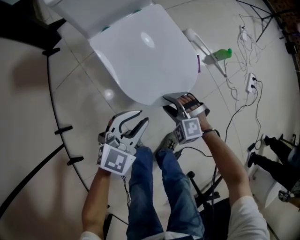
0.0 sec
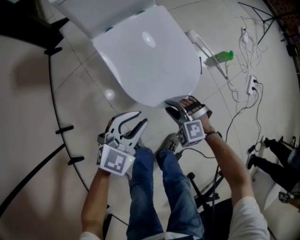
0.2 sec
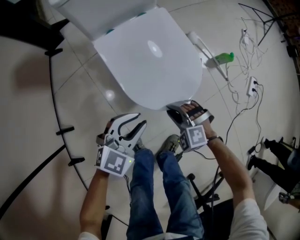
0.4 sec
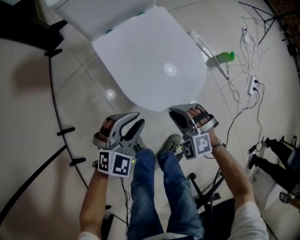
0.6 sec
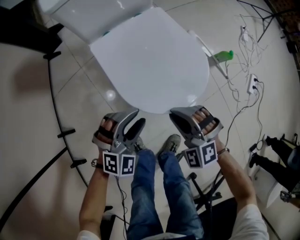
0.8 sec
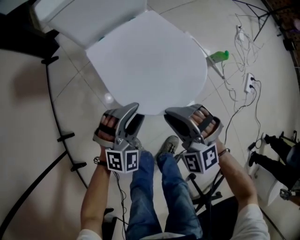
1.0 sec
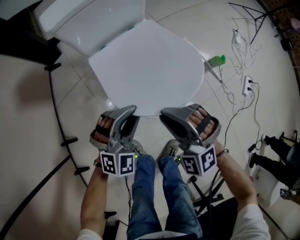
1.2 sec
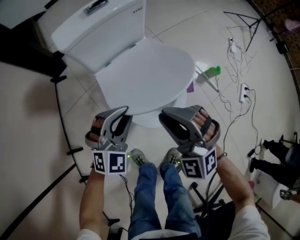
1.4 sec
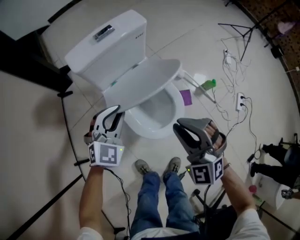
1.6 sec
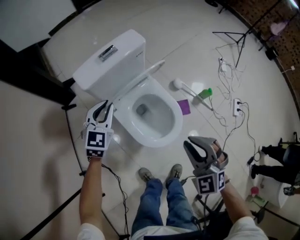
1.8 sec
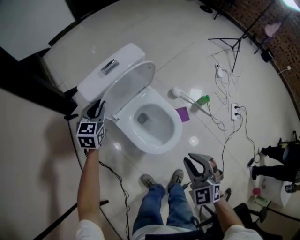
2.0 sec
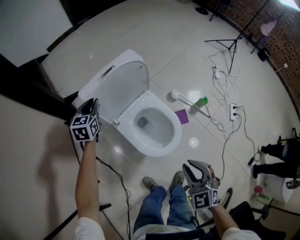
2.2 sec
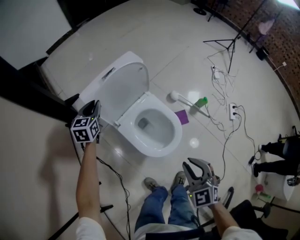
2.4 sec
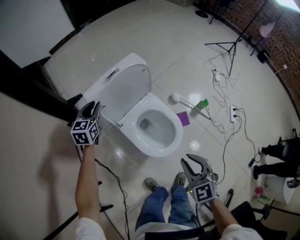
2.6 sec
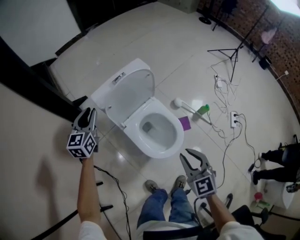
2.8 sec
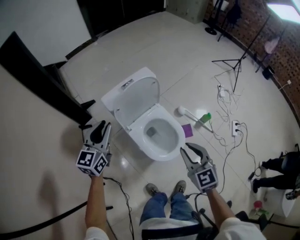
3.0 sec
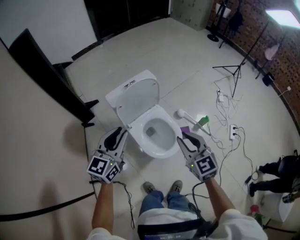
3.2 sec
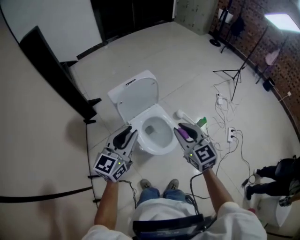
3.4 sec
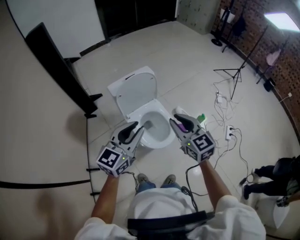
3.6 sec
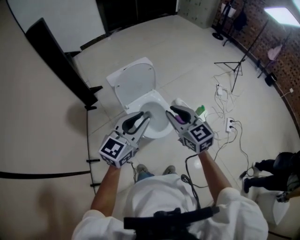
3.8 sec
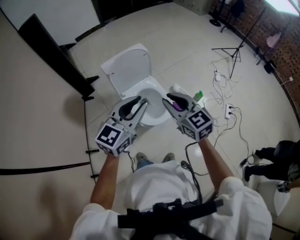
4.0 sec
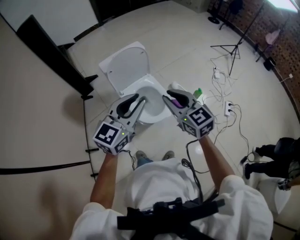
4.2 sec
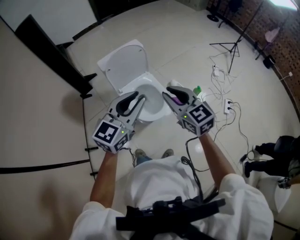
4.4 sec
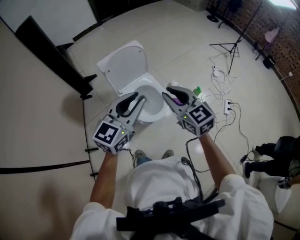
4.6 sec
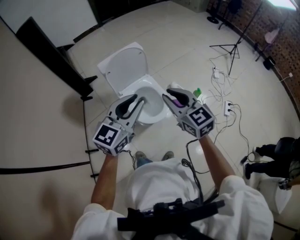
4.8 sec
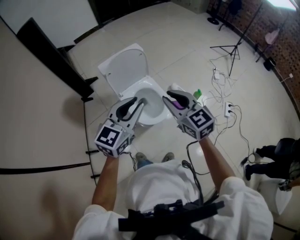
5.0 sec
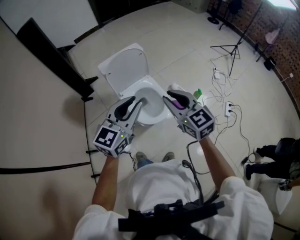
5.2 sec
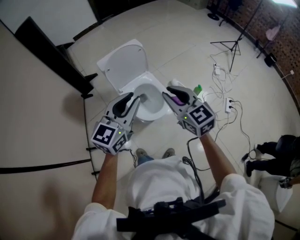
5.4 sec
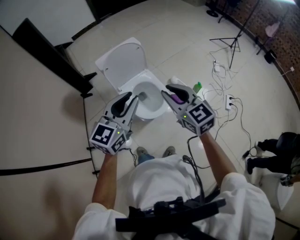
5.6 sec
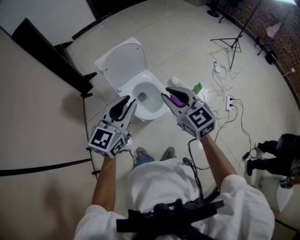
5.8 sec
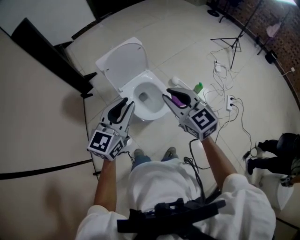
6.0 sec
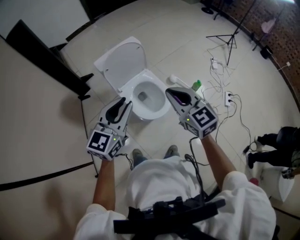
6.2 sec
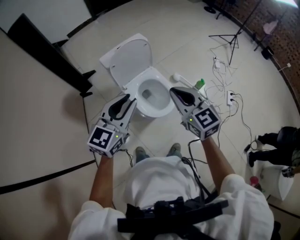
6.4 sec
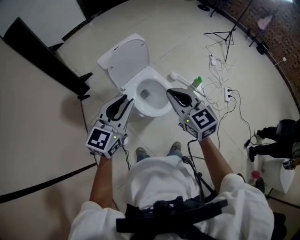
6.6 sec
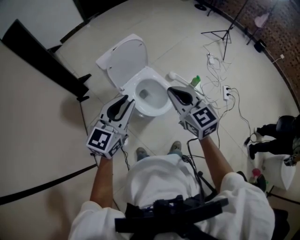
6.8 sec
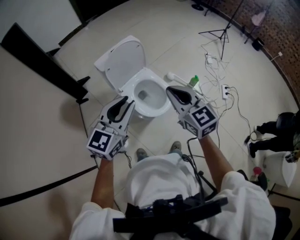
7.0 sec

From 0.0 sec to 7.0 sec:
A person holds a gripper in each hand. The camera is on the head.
From 0.0 sec to 1.4 sec: The left gripper goes approximately 15 cm forward and upward, changes its angle by roughly 30 degrees, and opens and closes again. Meanwhile the right gripper travels upward by roughly 30 cm, tips its fingers upward by about 30 degrees, and closes its fingers.
From 1.4 sec to 2.8 sec: The right gripper shifts some 10 cm upward, and rotates around the line of its fingers by roughly 50 degrees, clockwise from behind. The left gripper is displaced to the left, upward and forward by roughly 35 cm, and rotates around the line of its fingers by about 50 degrees, counterclockwise from behind.
From 2.8 sec to 4.2 sec: The left gripper travels backward, to the right and upward by about 50 cm, and turns by about 20 degrees. Meanwhile the right gripper shifts approximately 15 cm upward, and turns by roughly 20 degrees.
From 4.2 sec to 5.6 sec: The grippers make only small movements.
From 5.6 sec to 7.0 sec: The two grippers go roughly 10 cm to the left.

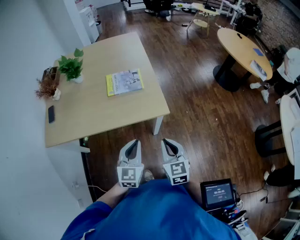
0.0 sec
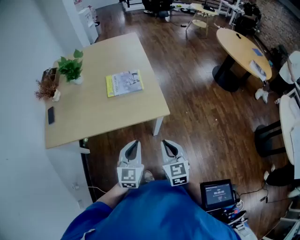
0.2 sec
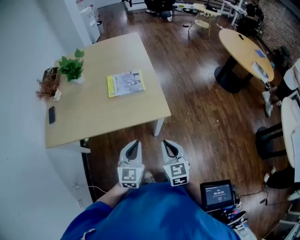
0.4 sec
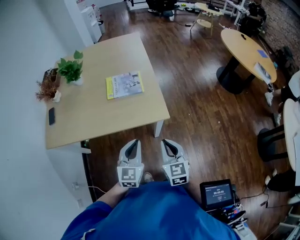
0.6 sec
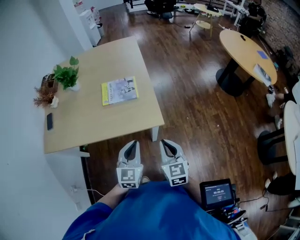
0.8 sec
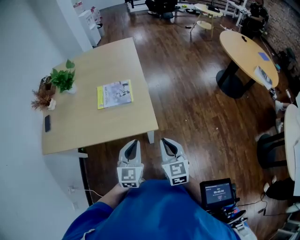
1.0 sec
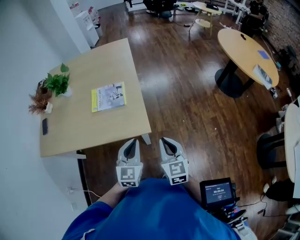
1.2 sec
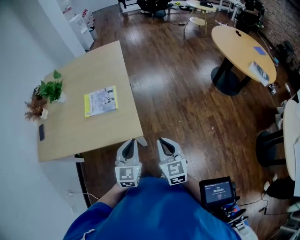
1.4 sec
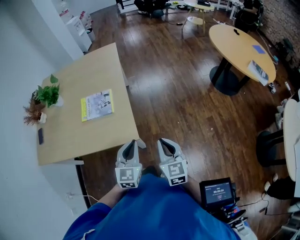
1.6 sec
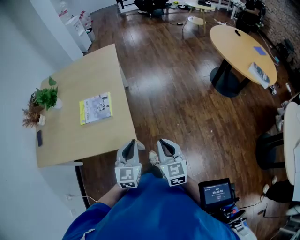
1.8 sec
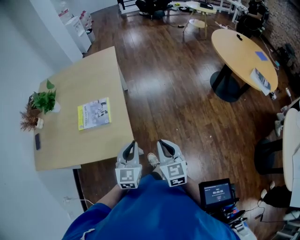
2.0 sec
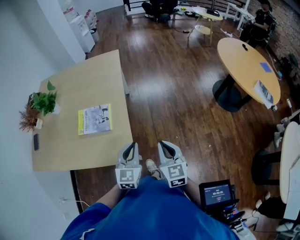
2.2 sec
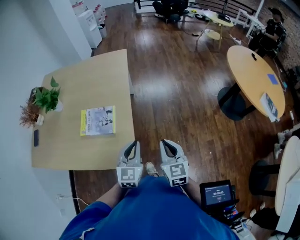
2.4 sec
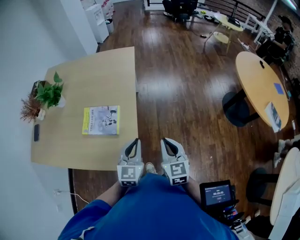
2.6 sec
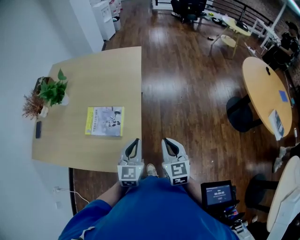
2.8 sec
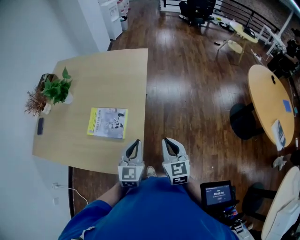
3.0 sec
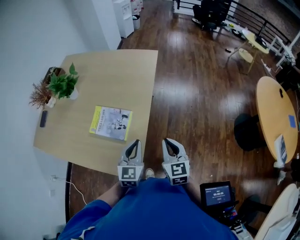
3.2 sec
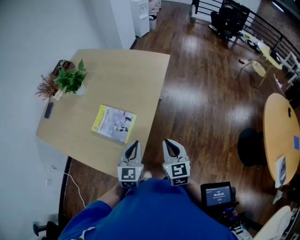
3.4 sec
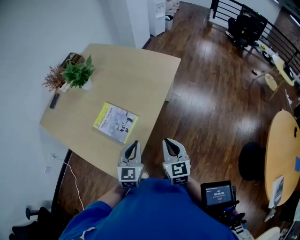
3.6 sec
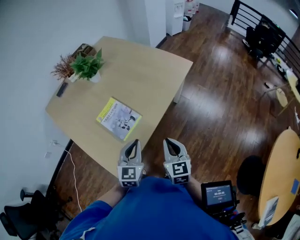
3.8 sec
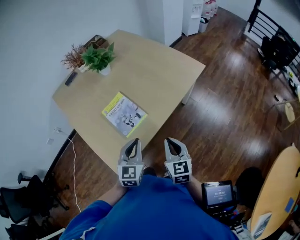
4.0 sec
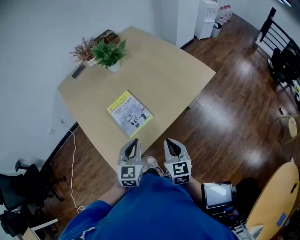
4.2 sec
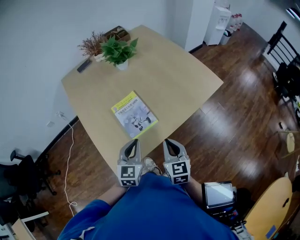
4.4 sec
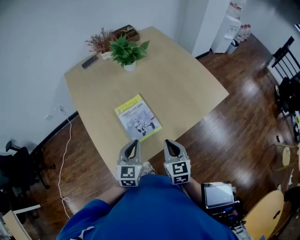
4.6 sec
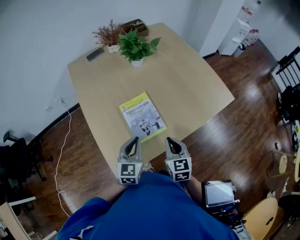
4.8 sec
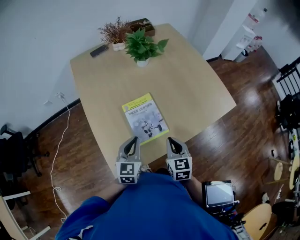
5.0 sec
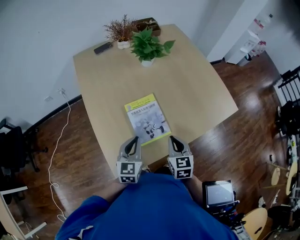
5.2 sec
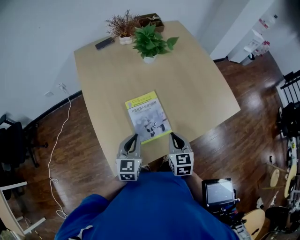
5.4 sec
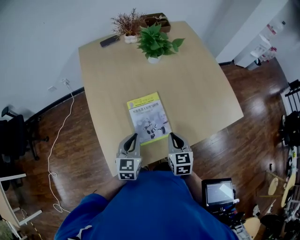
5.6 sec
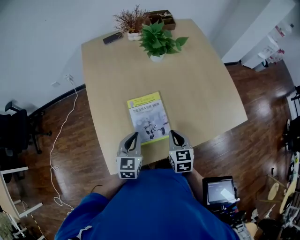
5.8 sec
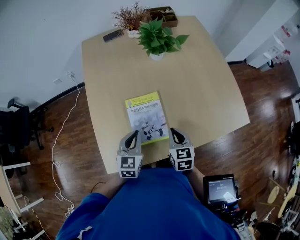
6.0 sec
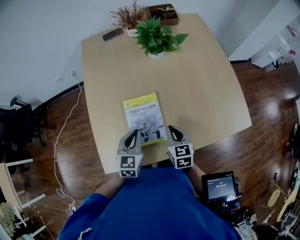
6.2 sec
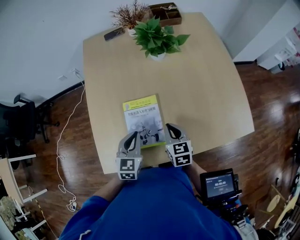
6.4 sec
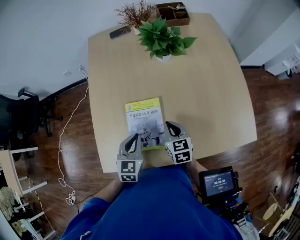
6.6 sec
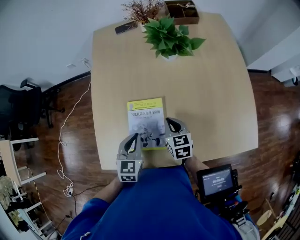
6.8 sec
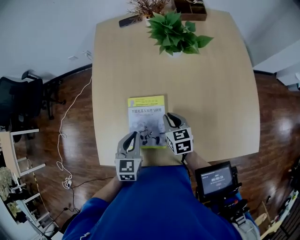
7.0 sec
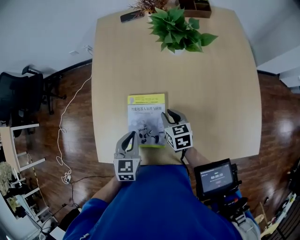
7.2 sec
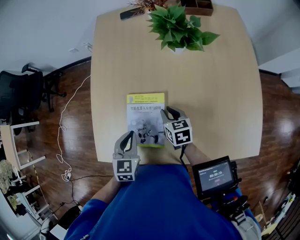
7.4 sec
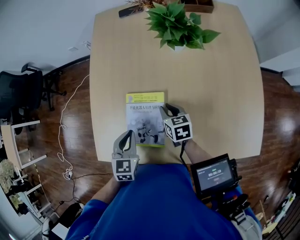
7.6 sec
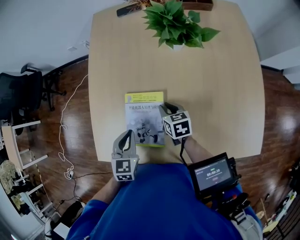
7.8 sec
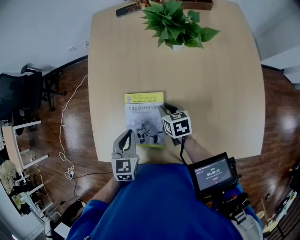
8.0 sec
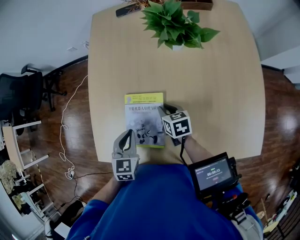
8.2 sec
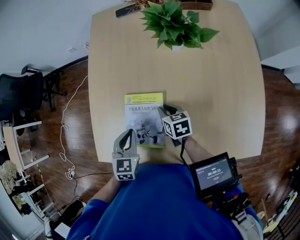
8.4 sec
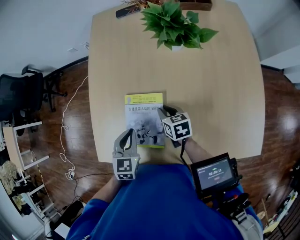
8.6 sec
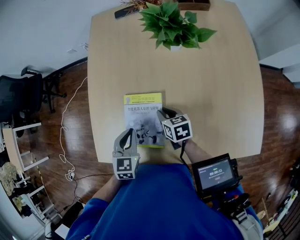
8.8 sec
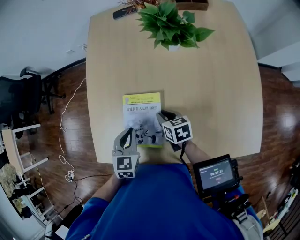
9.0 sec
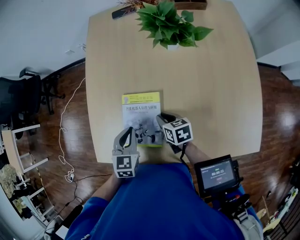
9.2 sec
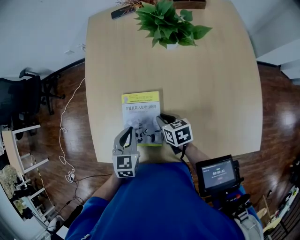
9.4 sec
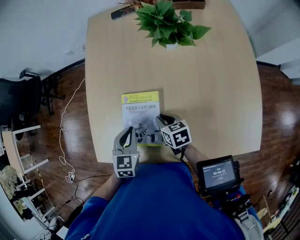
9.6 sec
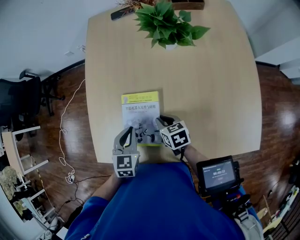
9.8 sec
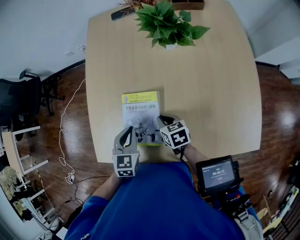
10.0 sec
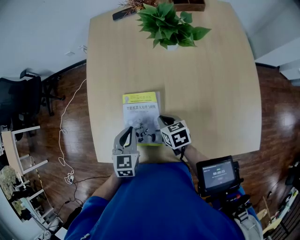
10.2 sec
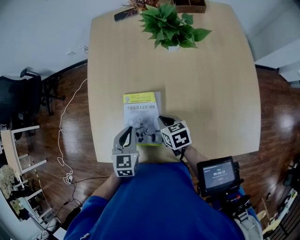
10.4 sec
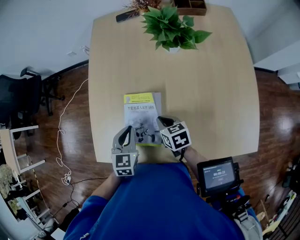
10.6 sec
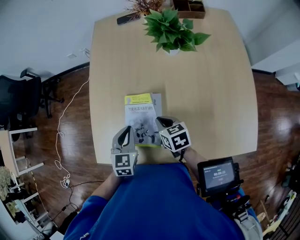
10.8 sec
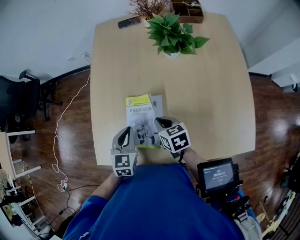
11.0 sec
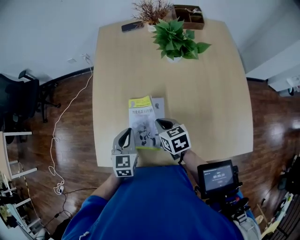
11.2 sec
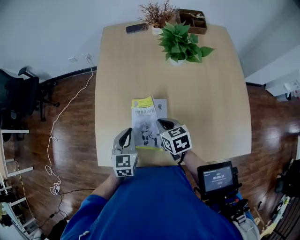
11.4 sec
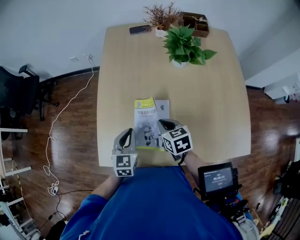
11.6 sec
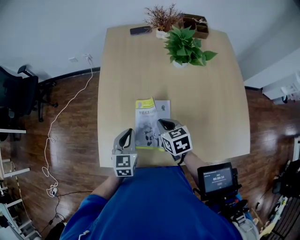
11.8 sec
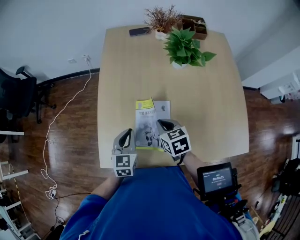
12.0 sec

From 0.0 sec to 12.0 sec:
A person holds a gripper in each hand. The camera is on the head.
From 0.0 sec to 1.6 sec: The two grippers go approximately 25 cm to the right and forward.
From 1.6 sec to 3.0 sec: Both grippers travel together forward, roughly 25 cm.
From 3.0 sec to 4.4 sec: The left gripper ends up about 10 cm from where it was, and rotates roughly 50 degrees; the right gripper changes place by about 20 cm, and rotates roughly 50 degrees.
From 4.4 sec to 6.0 sec: Both grippers move forward and downward, some 15 cm. The right gripper changes its angle by some 20 degrees; the left gripper changes its angle by approximately 20 degrees.
From 6.0 sec to 7.6 sec: The right gripper shifts by roughly 20 cm, and swivels some 30 degrees. Meanwhile the left gripper rotates about 20 degrees.
From 7.6 sec to 10.4 sec: The grippers make only small movements.
From 10.4 sec to 12.0 sec: The right gripper travels upward and to the left by approximately 10 cm, while the left gripper is displaced to the left by roughly 10 cm.

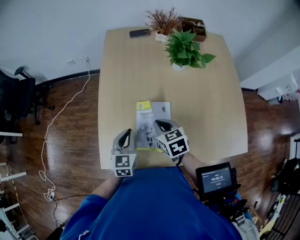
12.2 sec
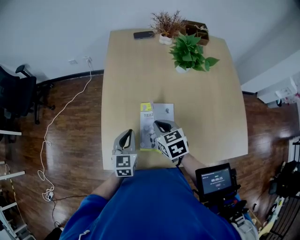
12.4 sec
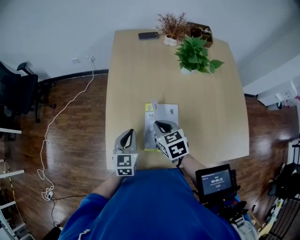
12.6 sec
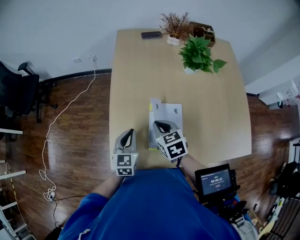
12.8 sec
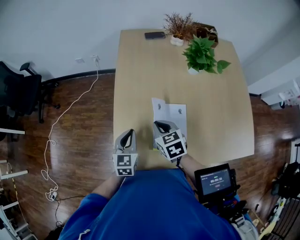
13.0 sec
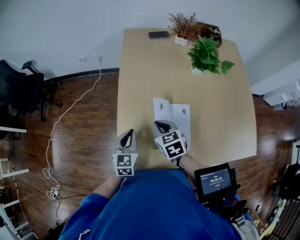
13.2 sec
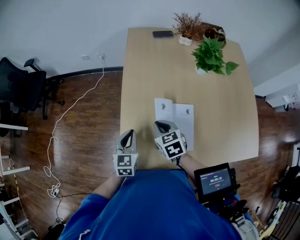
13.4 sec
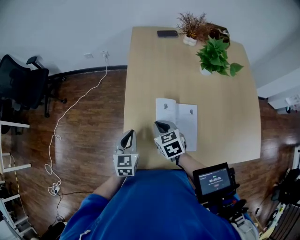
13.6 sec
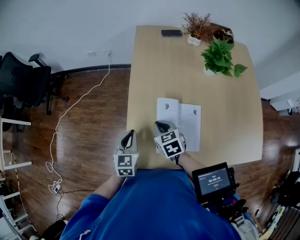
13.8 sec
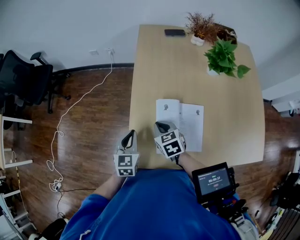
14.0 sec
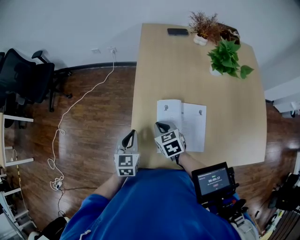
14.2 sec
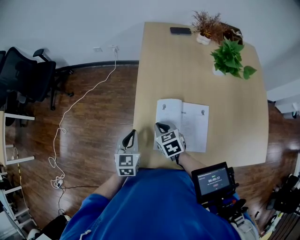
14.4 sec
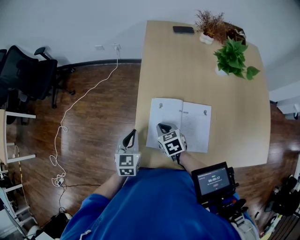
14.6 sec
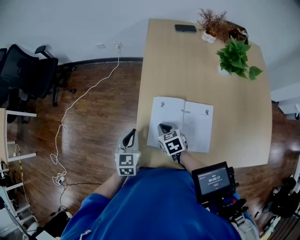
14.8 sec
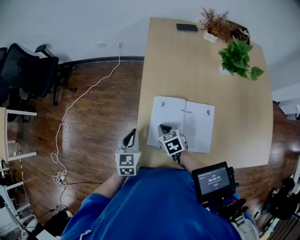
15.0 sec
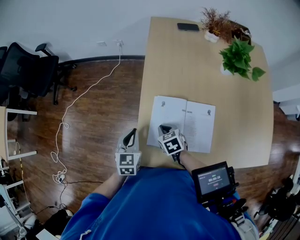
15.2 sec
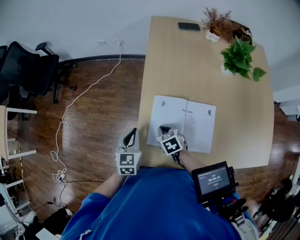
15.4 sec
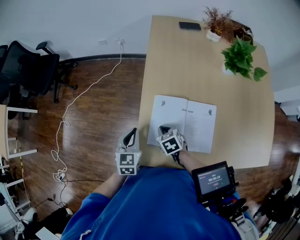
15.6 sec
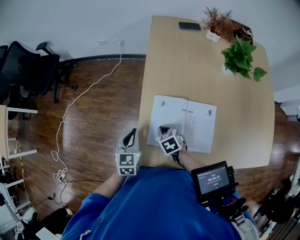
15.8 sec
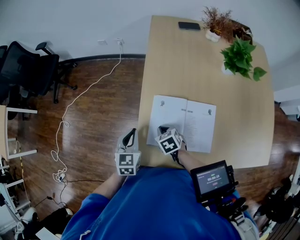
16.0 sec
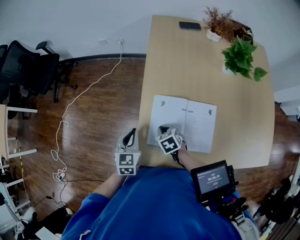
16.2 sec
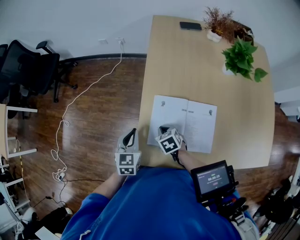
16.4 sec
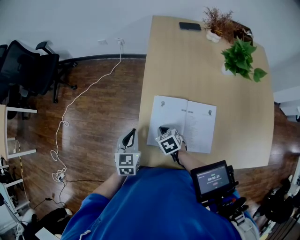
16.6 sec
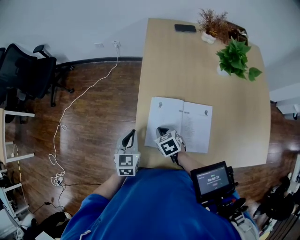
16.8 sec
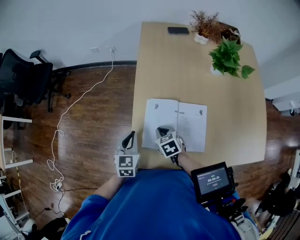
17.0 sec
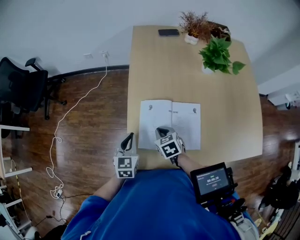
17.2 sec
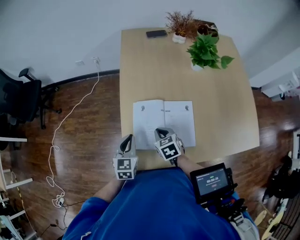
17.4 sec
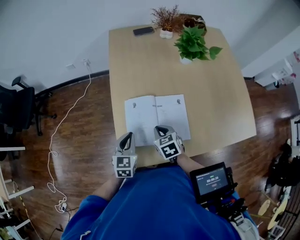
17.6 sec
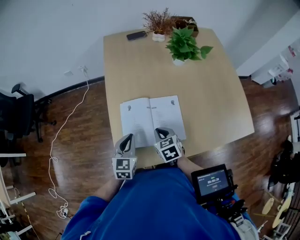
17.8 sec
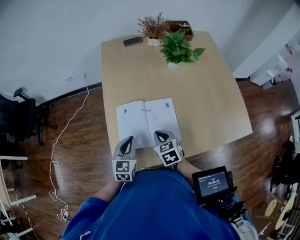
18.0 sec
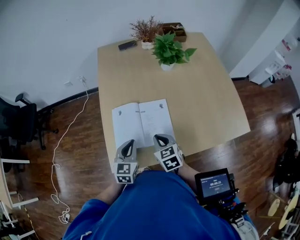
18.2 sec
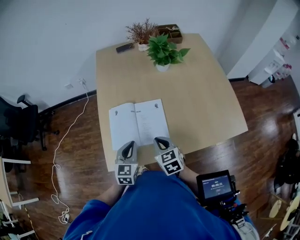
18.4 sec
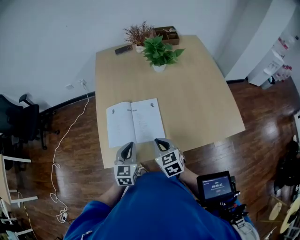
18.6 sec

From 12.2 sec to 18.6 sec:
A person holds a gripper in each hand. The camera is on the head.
From 12.2 sec to 13.8 sec: The two grippers go about 15 cm to the left.
From 13.8 sec to 15.4 sec: The right gripper travels downward by roughly 10 cm. Meanwhile the left gripper ends up some 5 cm from where it was.
From 15.4 sec to 17.0 sec: The grippers move only a little.
From 17.0 sec to 18.6 sec: The left gripper goes roughly 25 cm to the right and backward, while the right gripper goes roughly 30 cm to the right, backward and upward, and changes its angle by some 30 degrees.
